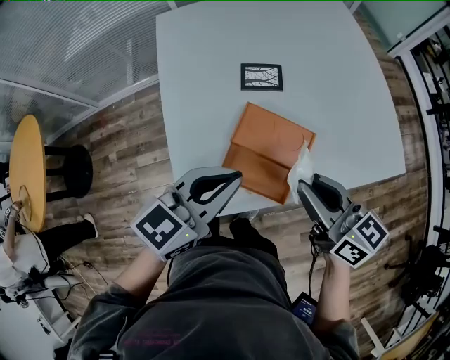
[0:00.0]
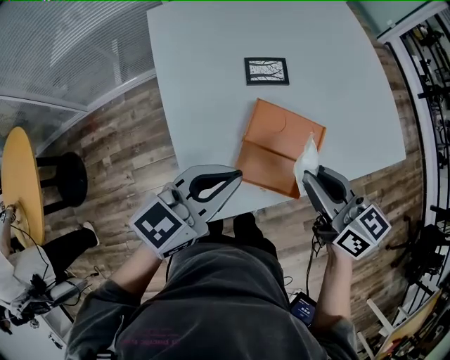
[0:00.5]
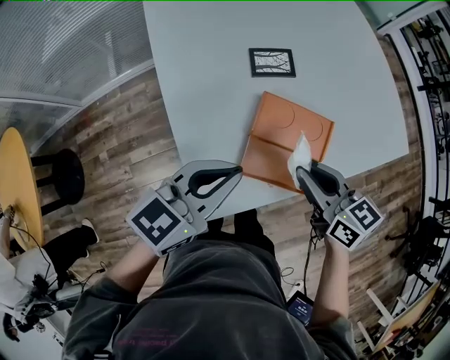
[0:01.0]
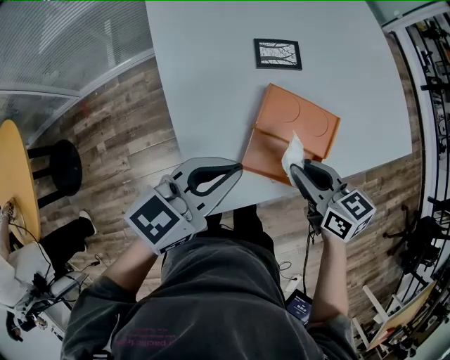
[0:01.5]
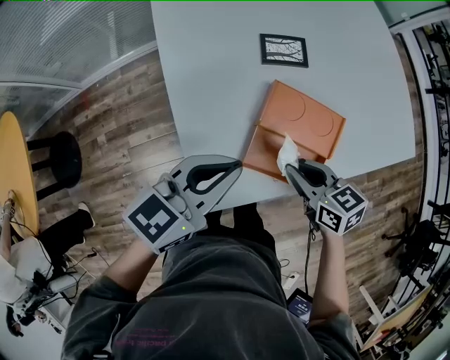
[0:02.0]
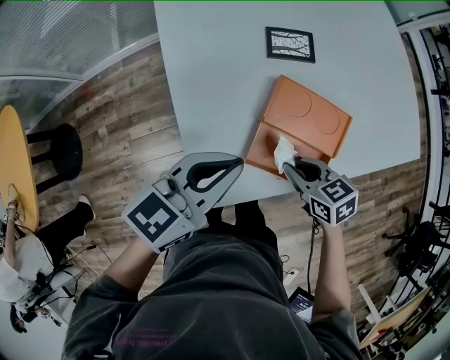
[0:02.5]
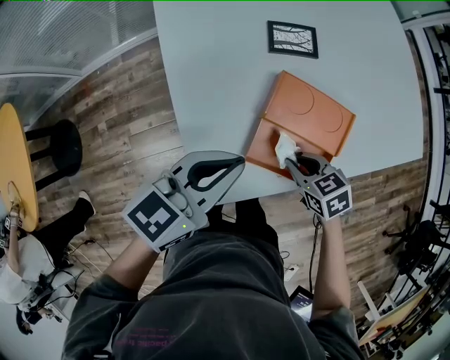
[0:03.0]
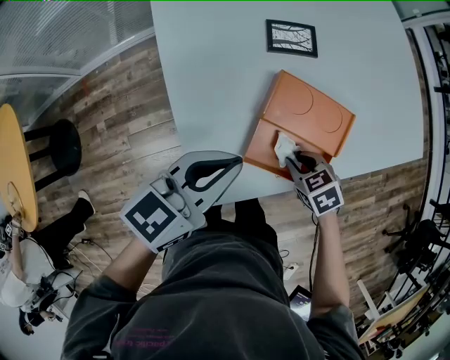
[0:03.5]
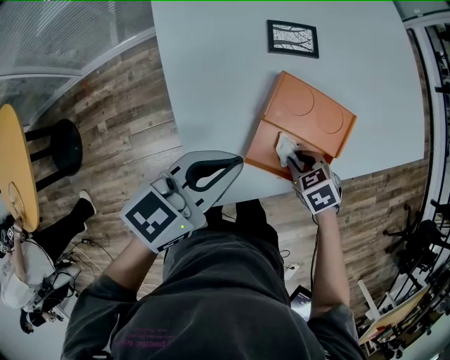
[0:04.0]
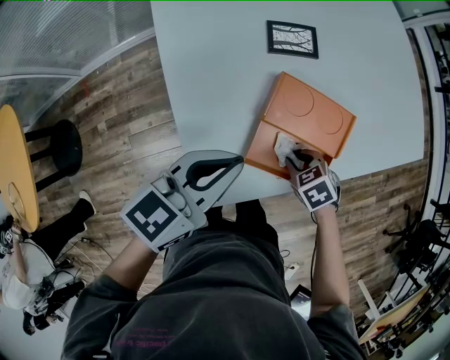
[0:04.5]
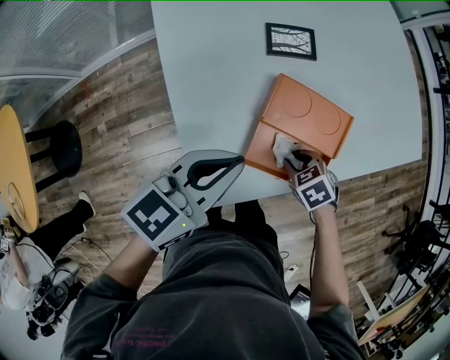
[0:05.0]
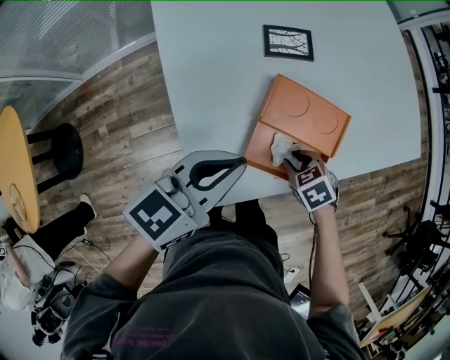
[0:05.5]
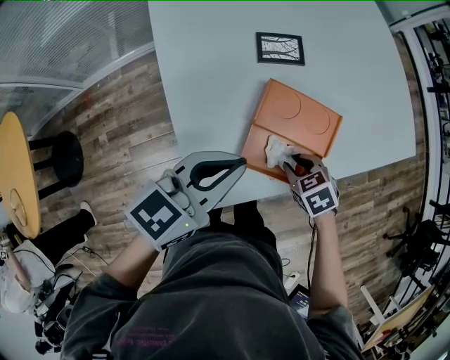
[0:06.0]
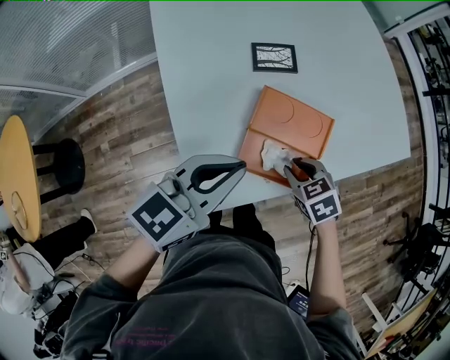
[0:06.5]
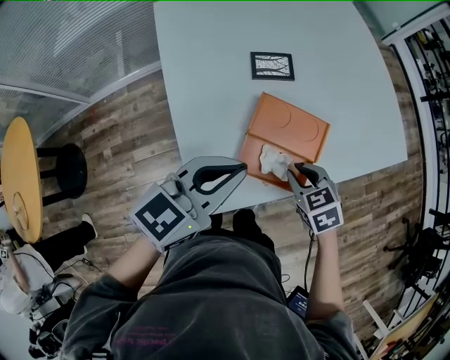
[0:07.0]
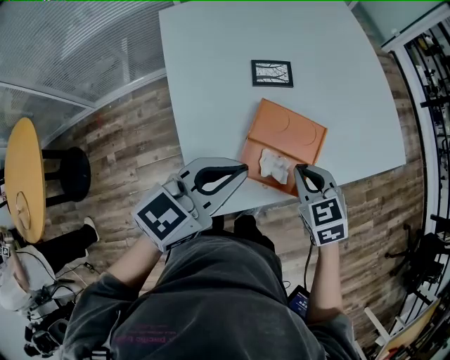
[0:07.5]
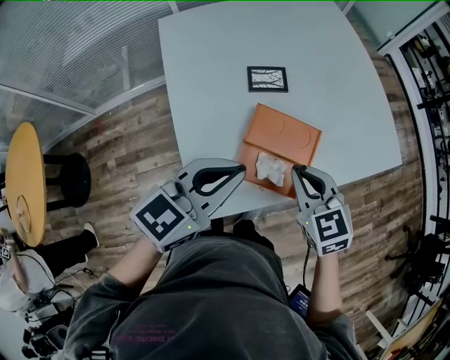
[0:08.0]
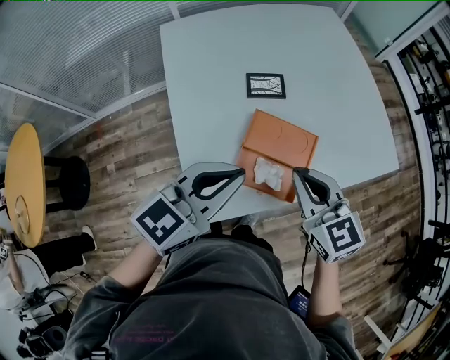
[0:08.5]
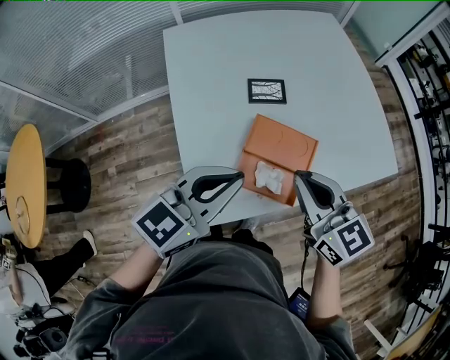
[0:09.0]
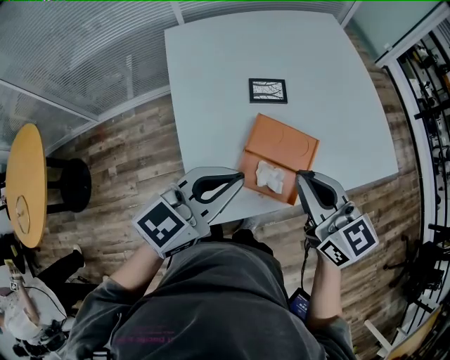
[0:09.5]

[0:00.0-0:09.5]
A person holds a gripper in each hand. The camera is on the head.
0:00.0 to 0:02.0: The right gripper is displaced downward and to the left by approximately 20 cm, and rotates roughly 30 degrees; the left gripper heads to the left and downward, covering approximately 10 cm.
0:02.0 to 0:04.0: The right gripper is displaced downward by roughly 15 cm, and tilts its fingers roughly 30 degrees downward.
0:04.0 to 0:05.5: There are only small adjustments of the grippers.
0:05.5 to 0:07.5: The left gripper heads upward, covering about 10 cm. Meanwhile the right gripper heads upward, covering about 20 cm, swivels approximately 30 degrees, and closes up.
0:07.5 to 0:09.5: The right gripper moves upward, some 15 cm, and points its fingers about 30 degrees further upward.

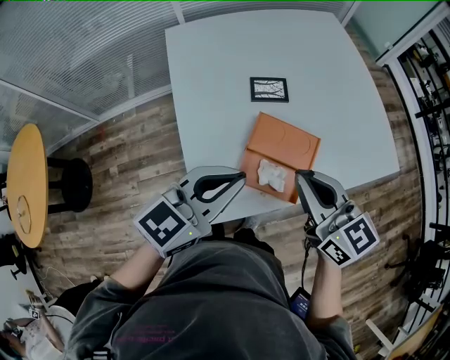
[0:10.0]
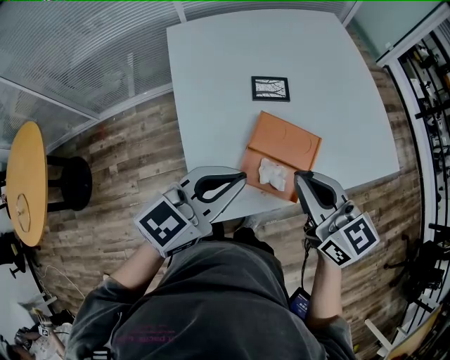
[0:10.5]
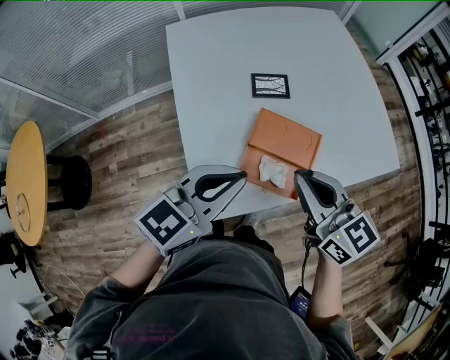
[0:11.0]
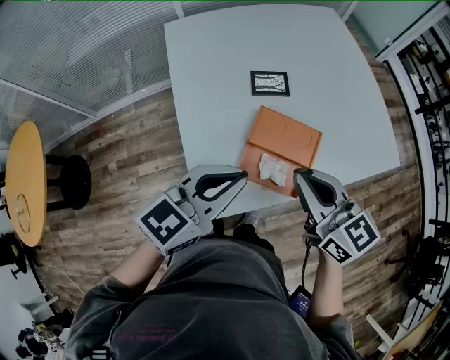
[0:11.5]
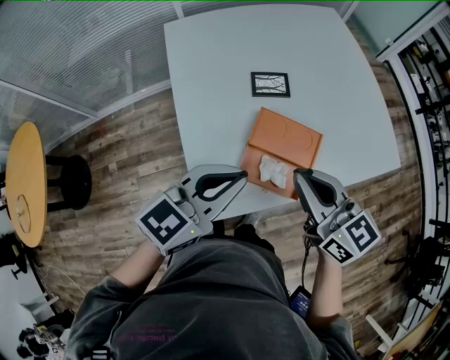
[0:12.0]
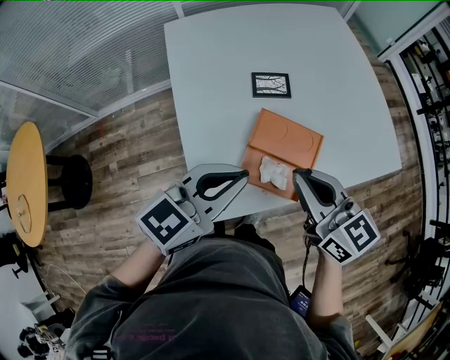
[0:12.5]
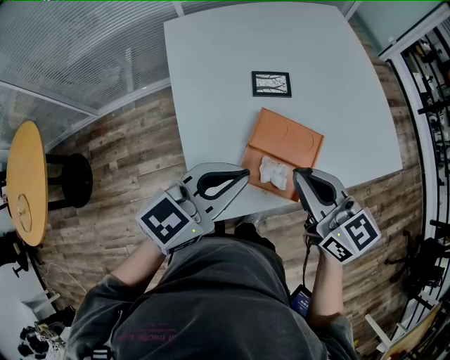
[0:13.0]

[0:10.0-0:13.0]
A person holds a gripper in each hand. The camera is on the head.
0:10.0 to 0:11.5: Both grippers stay about where they are.
0:11.5 to 0:13.0: The grippers move only a little.

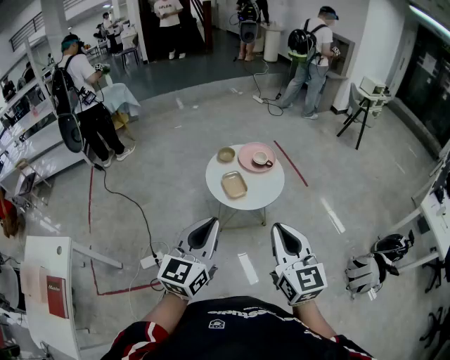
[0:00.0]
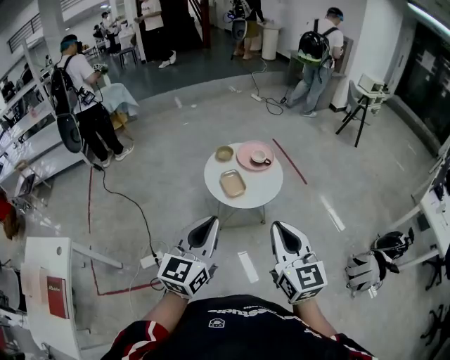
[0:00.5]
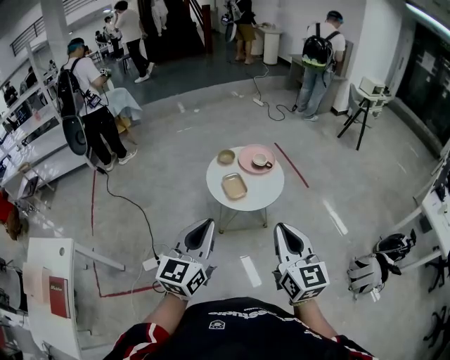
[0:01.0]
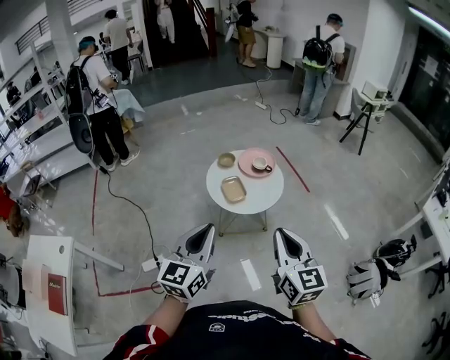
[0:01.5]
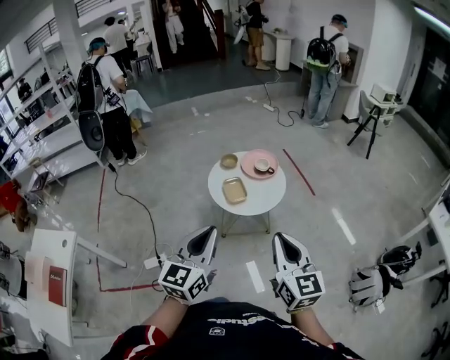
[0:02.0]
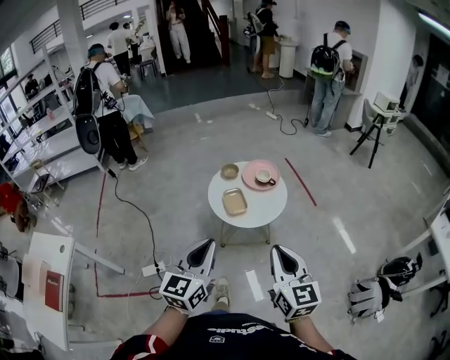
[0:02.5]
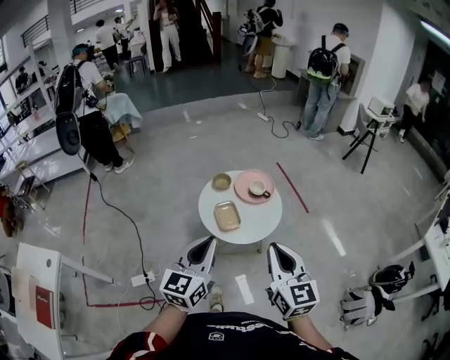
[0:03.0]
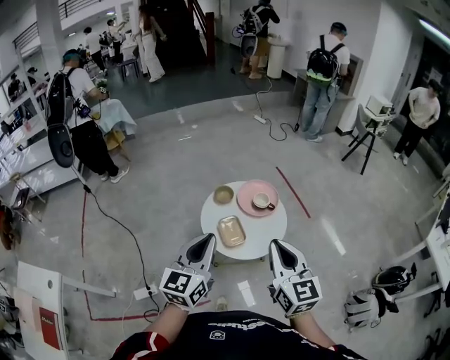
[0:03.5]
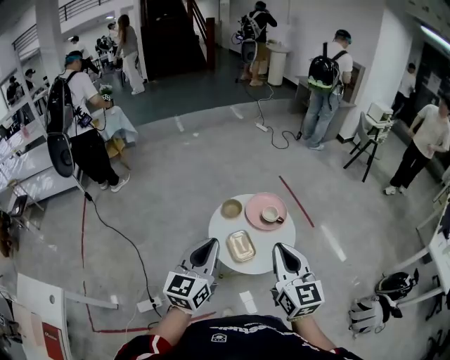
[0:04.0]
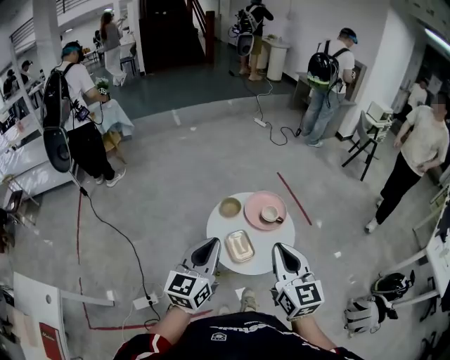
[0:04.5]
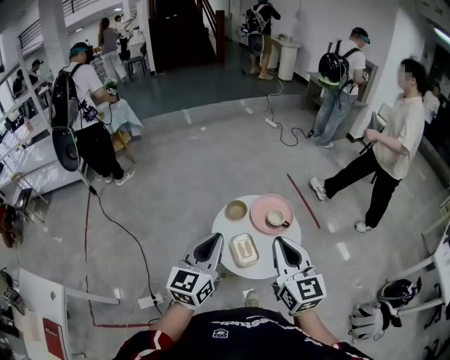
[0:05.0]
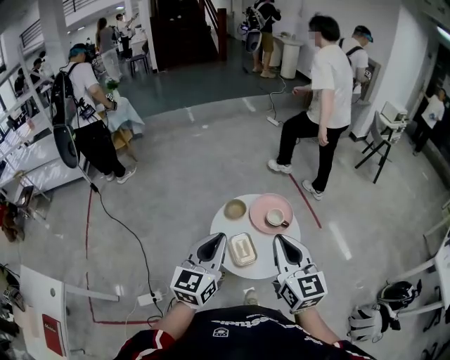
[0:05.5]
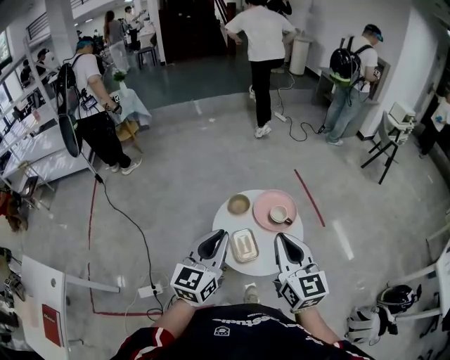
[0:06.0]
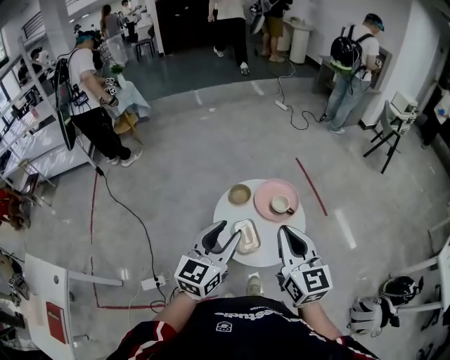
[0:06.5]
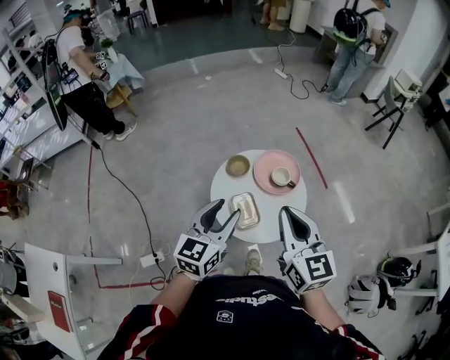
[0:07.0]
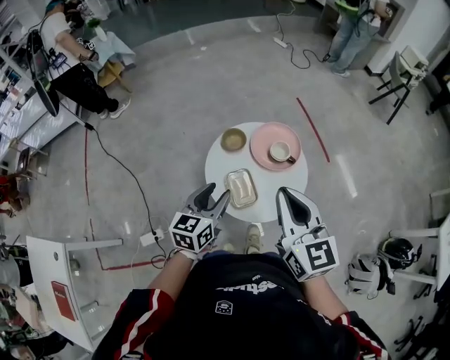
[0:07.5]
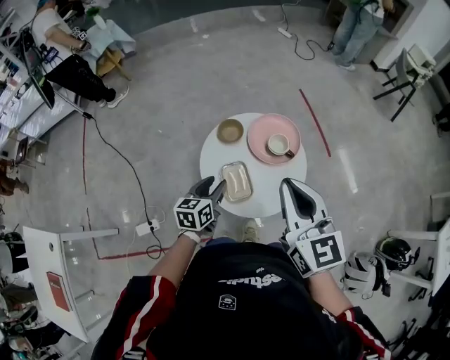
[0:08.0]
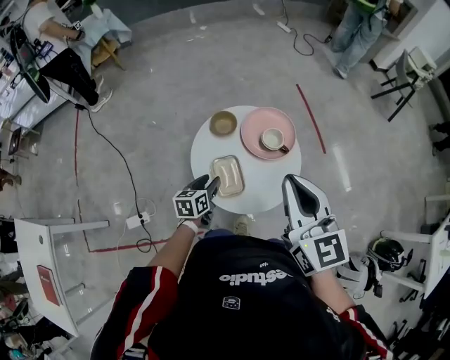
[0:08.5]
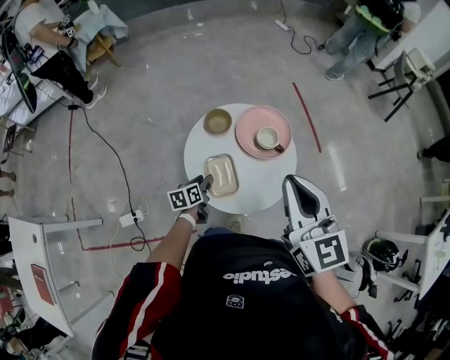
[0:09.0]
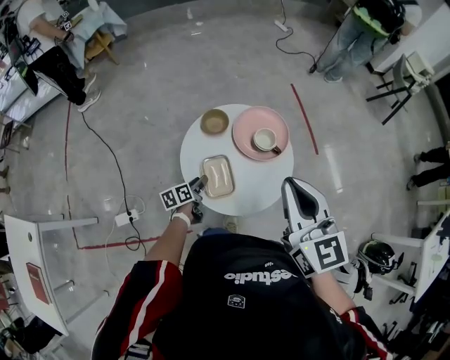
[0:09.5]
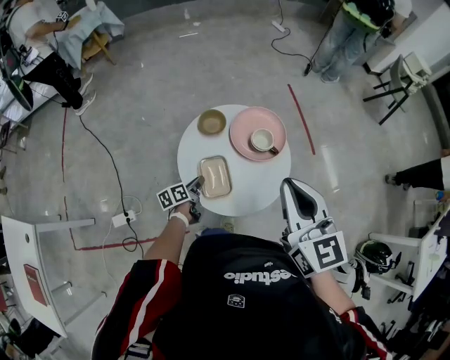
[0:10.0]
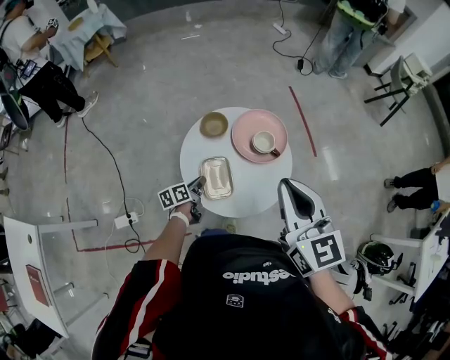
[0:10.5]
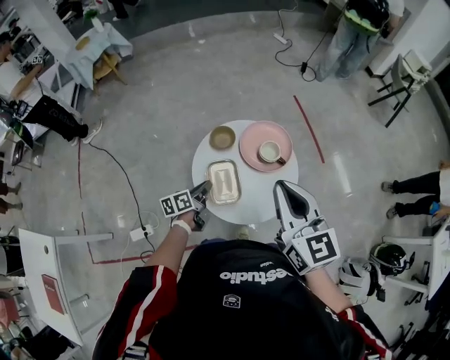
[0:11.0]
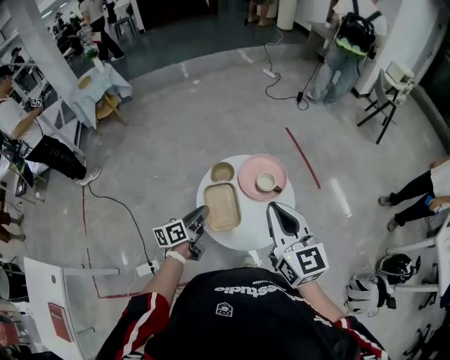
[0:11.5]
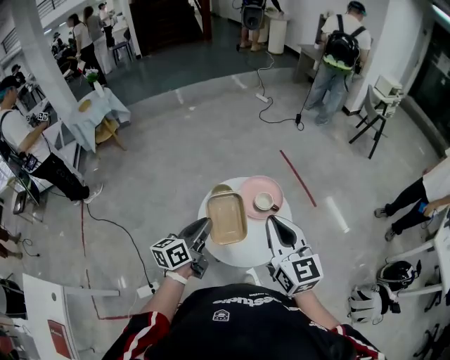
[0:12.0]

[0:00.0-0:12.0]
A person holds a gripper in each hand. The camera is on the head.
0:00.0 to 0:02.0: The grippers both shift to the right by approximately 5 cm.
0:02.0 to 0:04.0: The grippers both shift forward by about 30 cm.
0:04.0 to 0:06.0: Both grippers move forward, approximately 5 cm.
0:06.0 to 0:08.0: The left gripper goes approximately 25 cm downward, changes its angle by approximately 30 degrees, and opens its fingers, while the right gripper heads forward and downward, covering approximately 10 cm.
0:08.0 to 0:10.0: The left gripper moves downward, about 20 cm, rotates approximately 40 degrees, and closes up. The right gripper moves approximately 5 cm.
0:10.0 to 0:12.0: The right gripper goes approximately 10 cm upward, while the left gripper travels upward by some 35 cm, and swivels some 40 degrees.

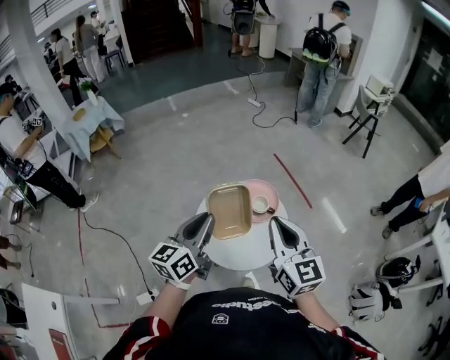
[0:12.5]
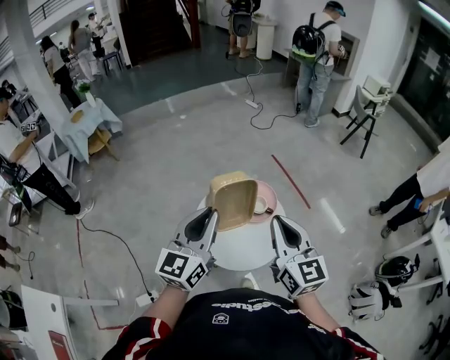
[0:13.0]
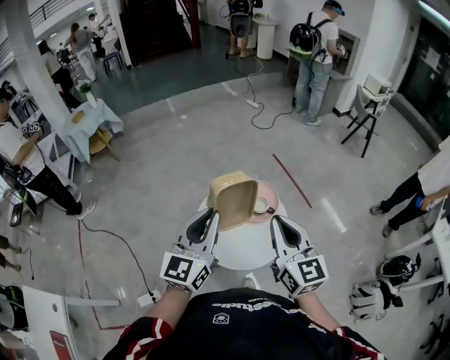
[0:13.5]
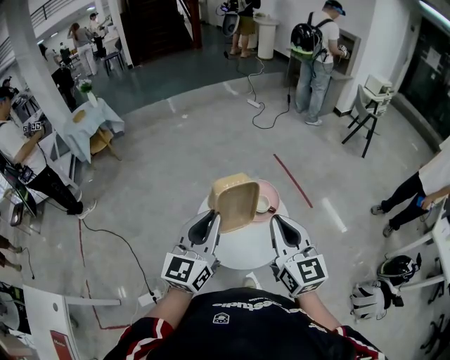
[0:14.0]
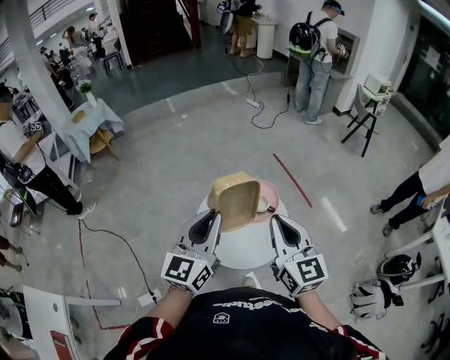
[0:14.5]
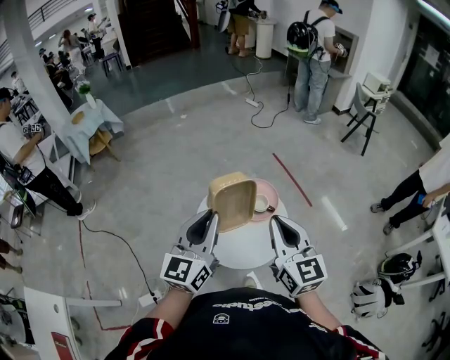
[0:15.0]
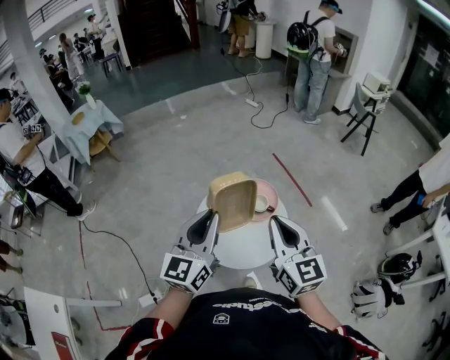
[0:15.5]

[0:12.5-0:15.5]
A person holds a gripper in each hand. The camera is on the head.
0:12.5 to 0:14.0: The left gripper is displaced upward by some 5 cm, and turns by about 20 degrees.
0:14.0 to 0:15.5: Both grippers stay about where they are.
